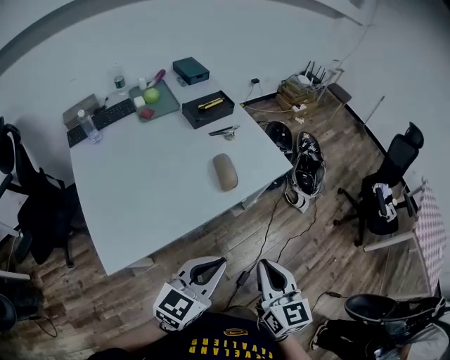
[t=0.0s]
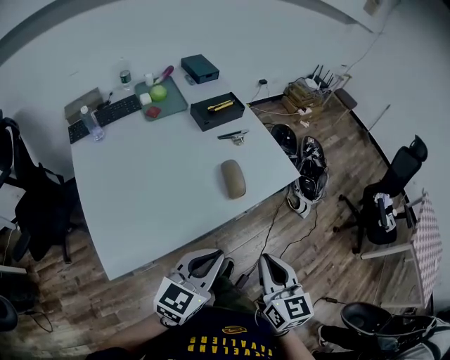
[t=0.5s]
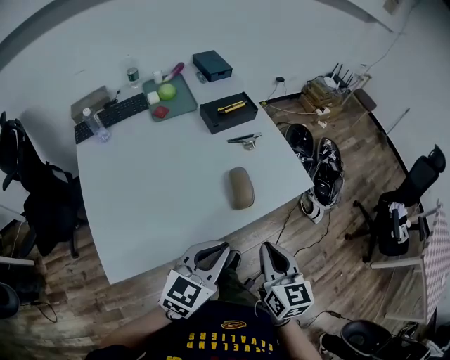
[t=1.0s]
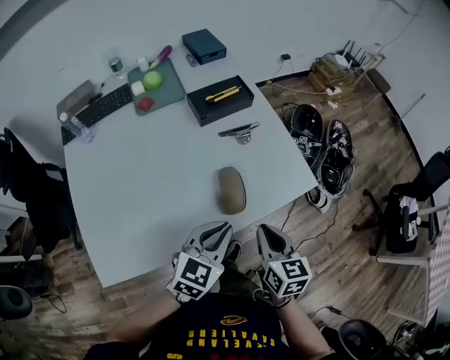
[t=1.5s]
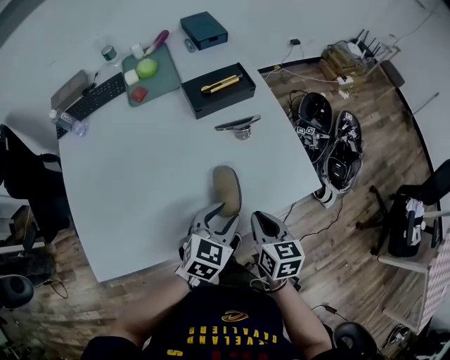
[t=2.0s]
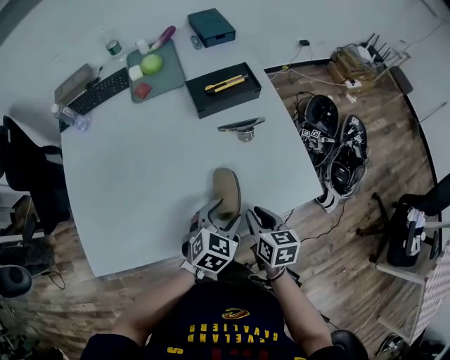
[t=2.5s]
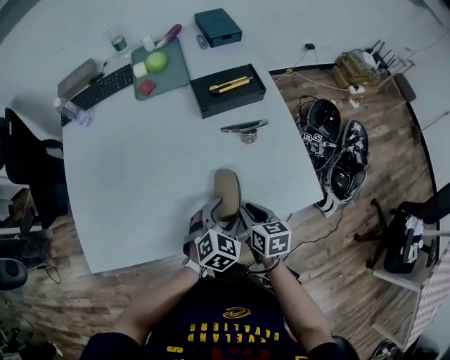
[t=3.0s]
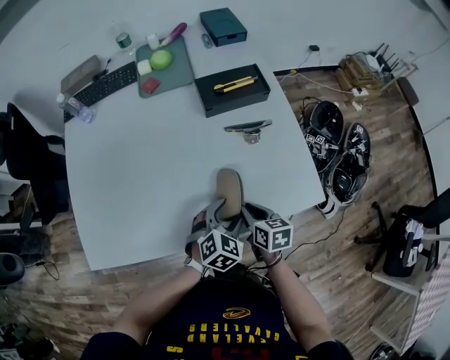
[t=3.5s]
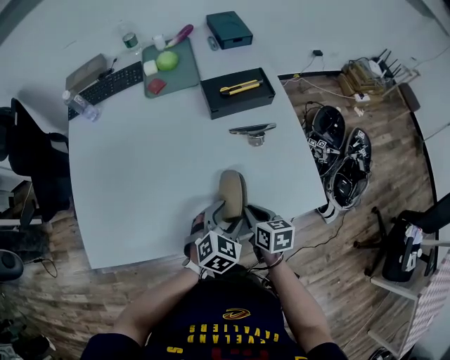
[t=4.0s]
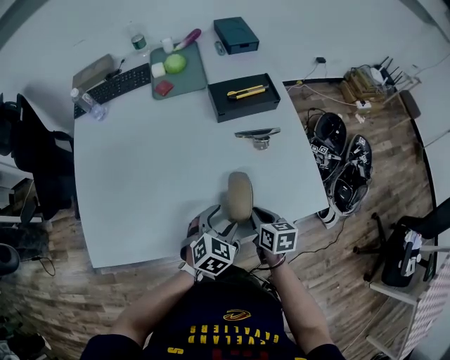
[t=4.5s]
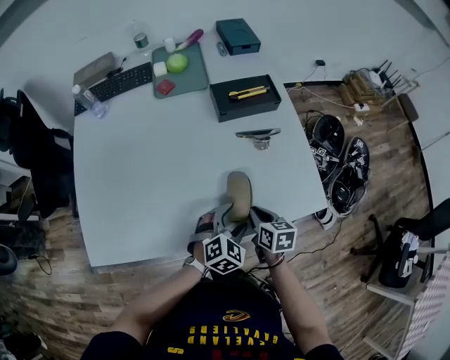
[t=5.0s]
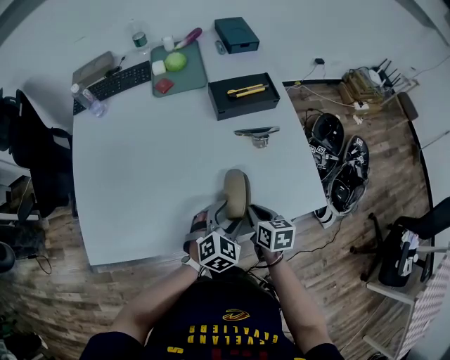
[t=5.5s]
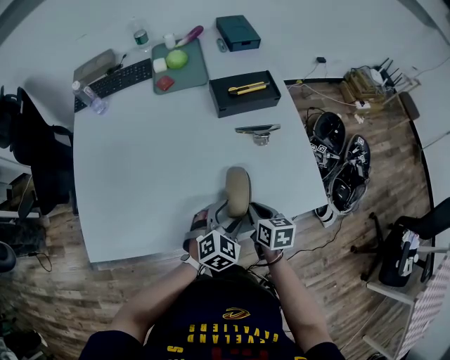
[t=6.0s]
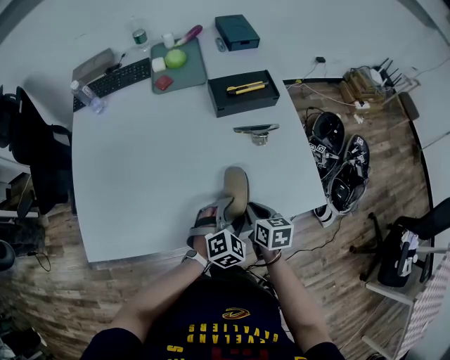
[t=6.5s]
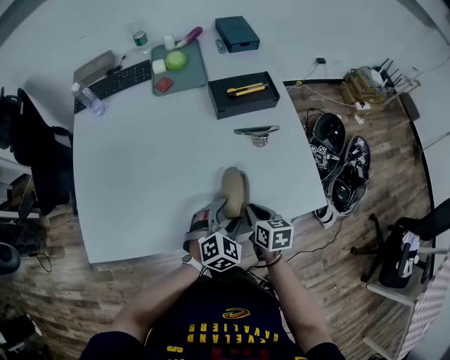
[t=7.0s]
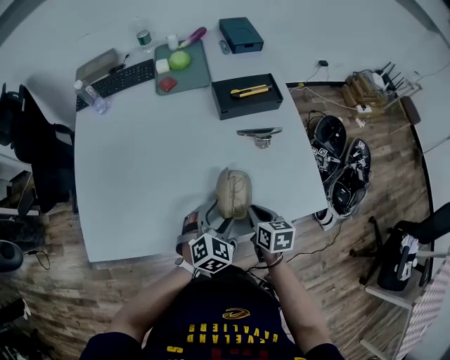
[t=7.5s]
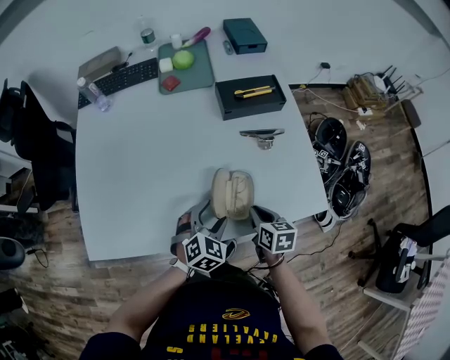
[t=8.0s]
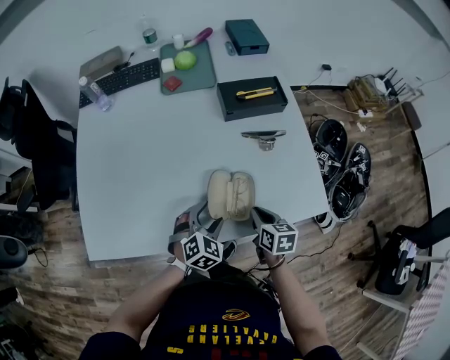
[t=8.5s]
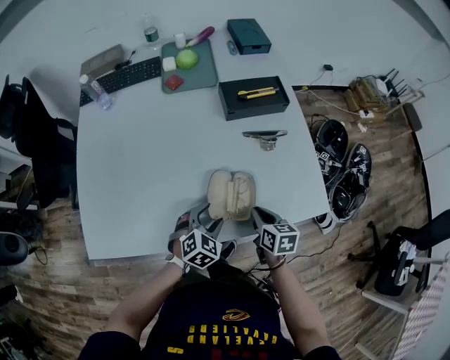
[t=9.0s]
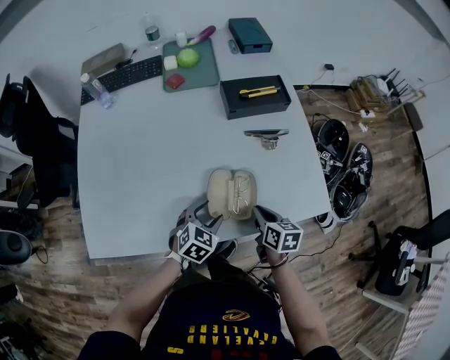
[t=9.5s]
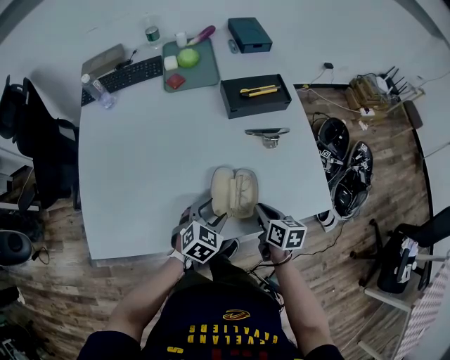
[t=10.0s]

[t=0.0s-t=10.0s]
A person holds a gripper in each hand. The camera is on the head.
t=0.0s to t=2.0s: The two grippers go some 35 cm forward and downward. The right gripper changes its angle by roughly 30 degrees. The left gripper changes its angle by approximately 30 degrees, and opens.
t=2.0s to t=4.0s: Both grippers travel together downward, some 10 cm. The left gripper opens its fingers.
t=4.0s to t=6.0s: There are only small adjustments of the grippers.
t=6.0s to t=8.0s: The left gripper shifts approximately 5 cm to the left.
t=8.0s to t=10.0s: The grippers stay close to where they were, moving slightly.

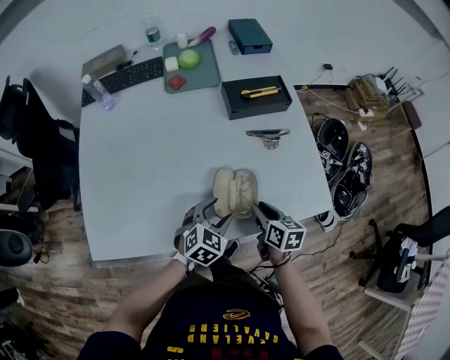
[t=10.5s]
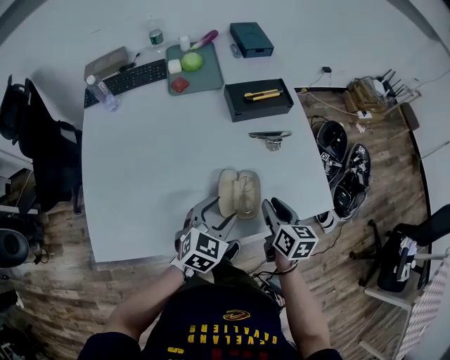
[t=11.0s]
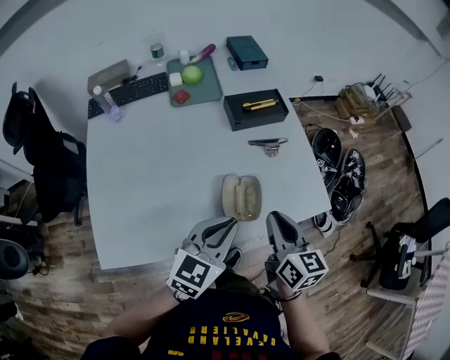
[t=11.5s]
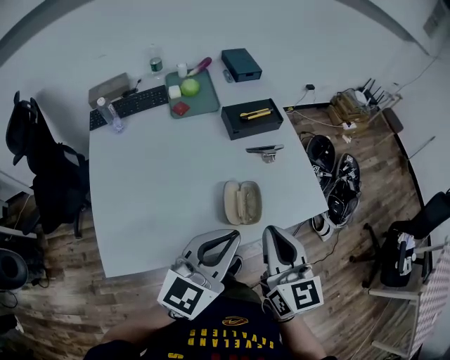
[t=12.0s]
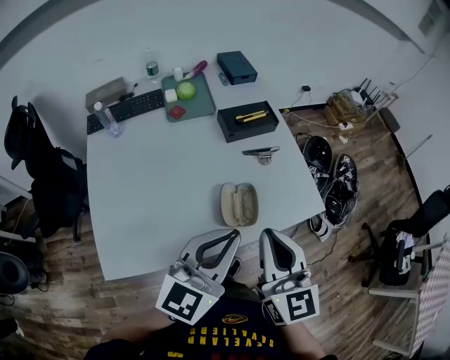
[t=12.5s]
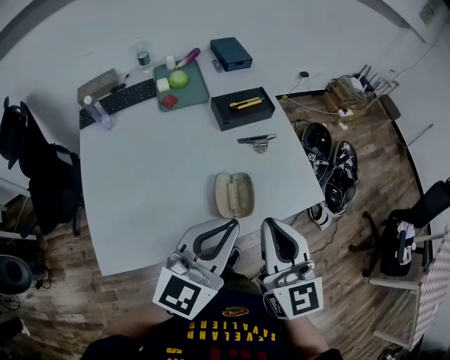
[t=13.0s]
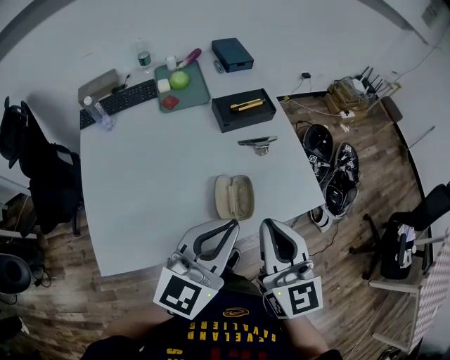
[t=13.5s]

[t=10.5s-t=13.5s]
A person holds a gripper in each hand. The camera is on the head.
t=10.5s to t=12.0s: Both grippers move upward, approximately 30 cm. The right gripper rotates roughly 40 degrees, and closes up. The left gripper angles its fingers upward, by approximately 40 degrees, and closes.
t=12.0s to t=13.5s: The grippers stay close to where they were, moving slightly.

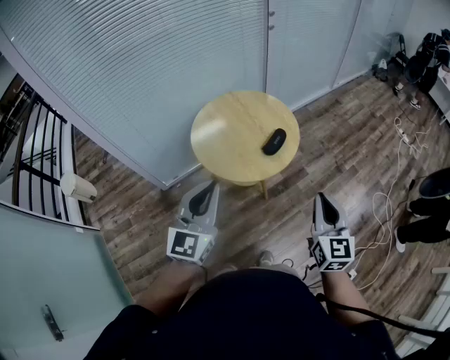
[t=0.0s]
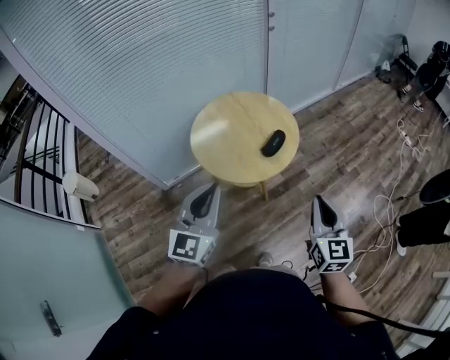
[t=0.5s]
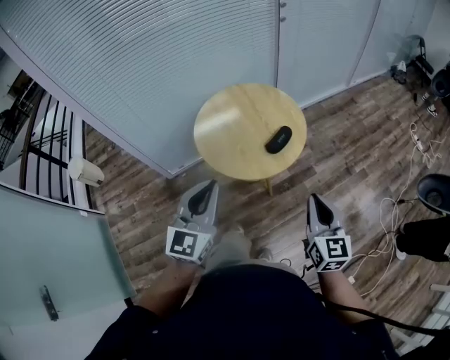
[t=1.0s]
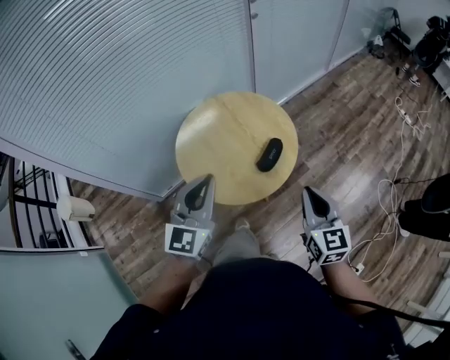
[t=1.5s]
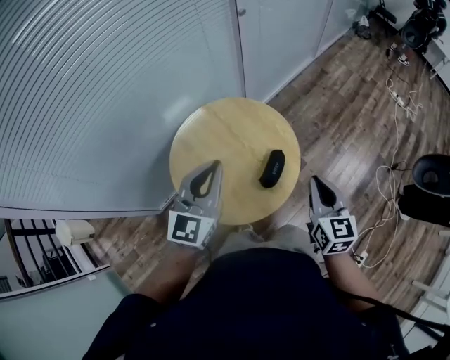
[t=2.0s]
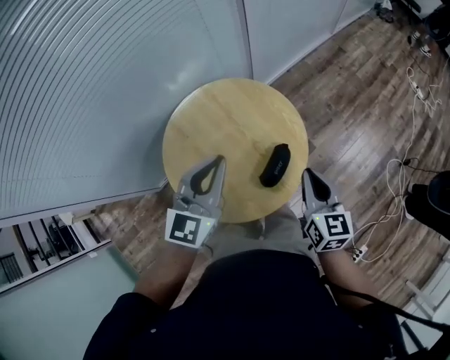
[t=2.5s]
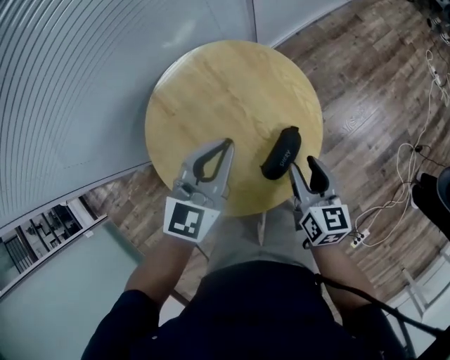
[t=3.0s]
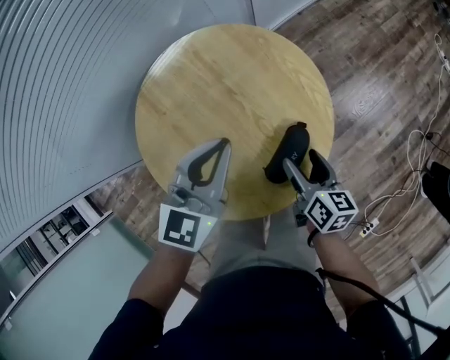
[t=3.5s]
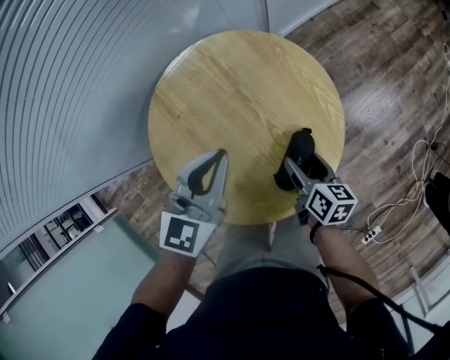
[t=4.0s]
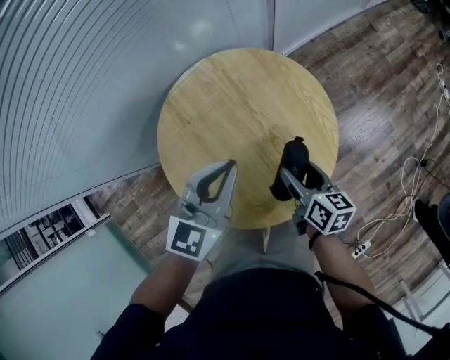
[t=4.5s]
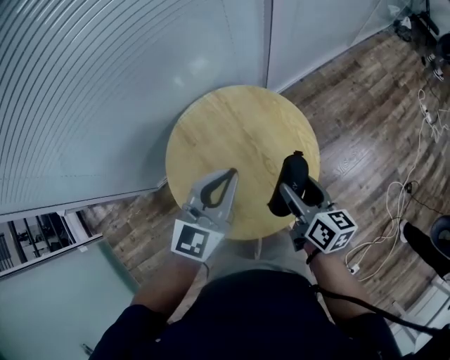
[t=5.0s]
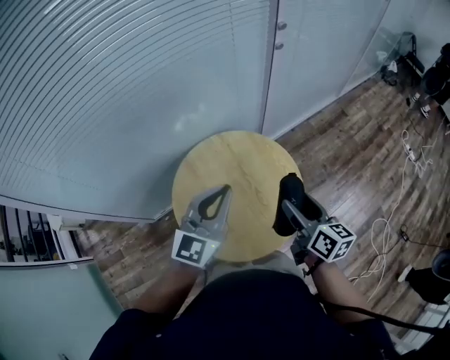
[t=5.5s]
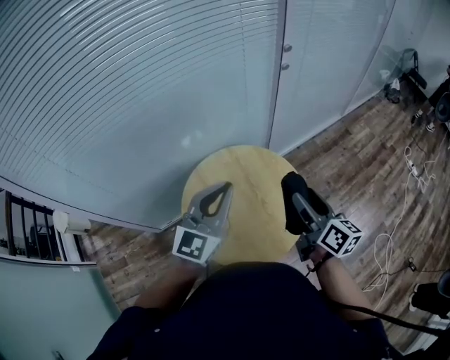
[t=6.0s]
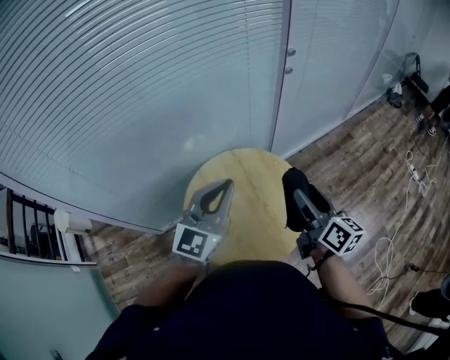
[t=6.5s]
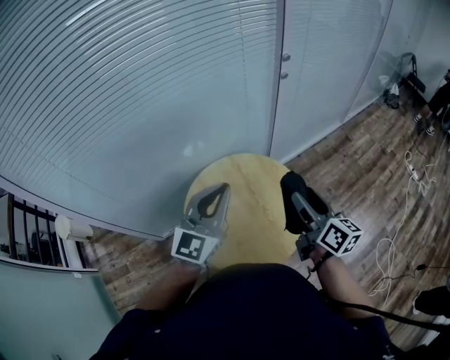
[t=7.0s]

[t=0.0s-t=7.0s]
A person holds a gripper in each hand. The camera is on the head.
t=0.0s to t=2.0s: The grippers both shift forward by some 35 cm.
t=2.0s to t=3.5s: The grippers both shift downward and forward by about 30 cm. The right gripper swivels roughly 40 degrees, and opens up.
t=3.5s to t=5.0s: The grippers both shift upward by some 15 cm.
t=5.0s to t=7.0s: Both grippers travel together upward, some 20 cm.

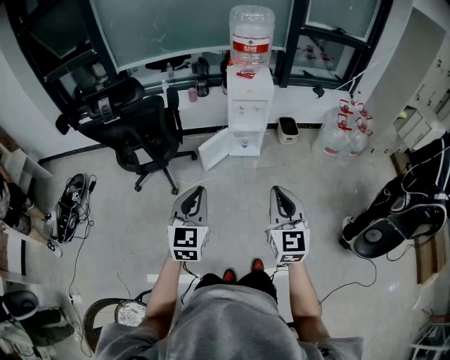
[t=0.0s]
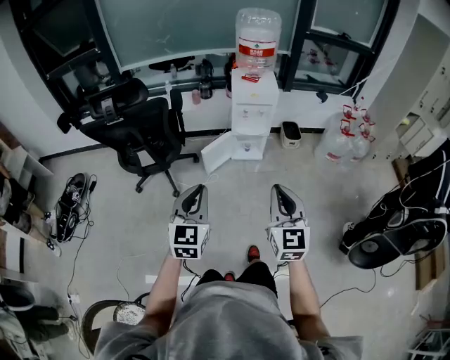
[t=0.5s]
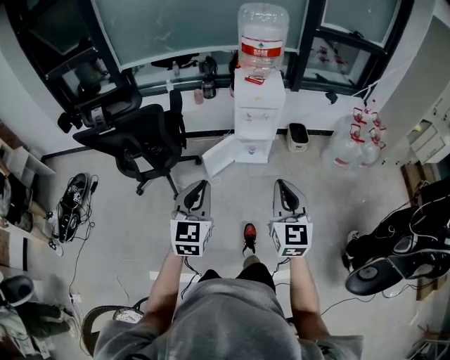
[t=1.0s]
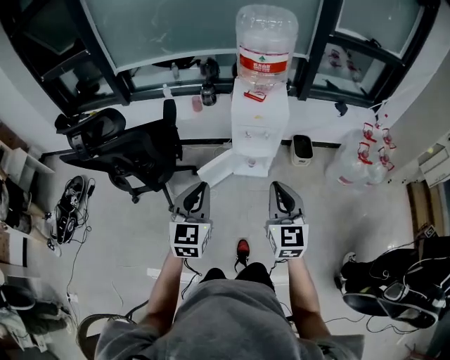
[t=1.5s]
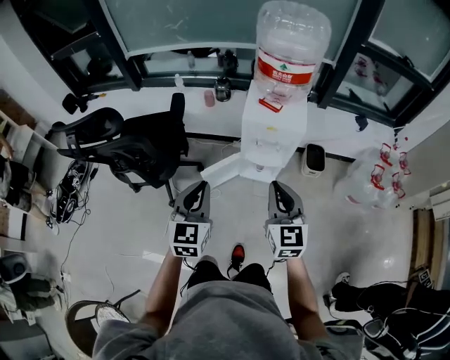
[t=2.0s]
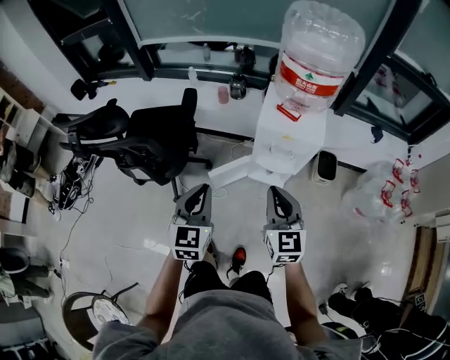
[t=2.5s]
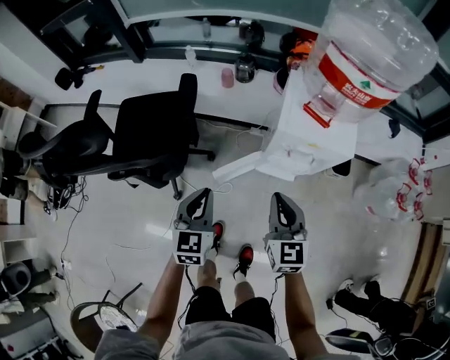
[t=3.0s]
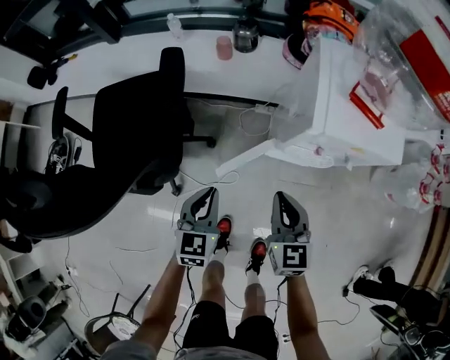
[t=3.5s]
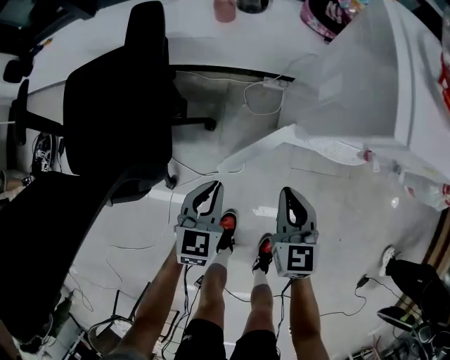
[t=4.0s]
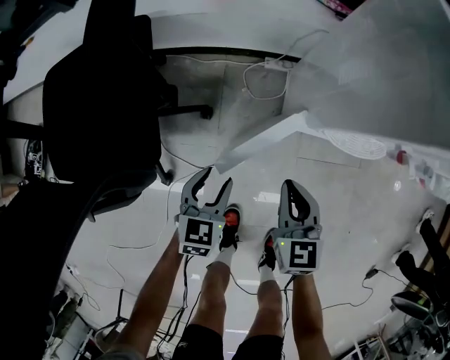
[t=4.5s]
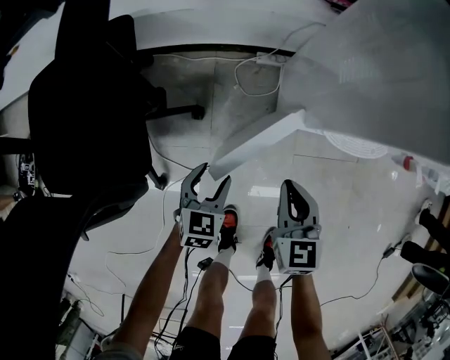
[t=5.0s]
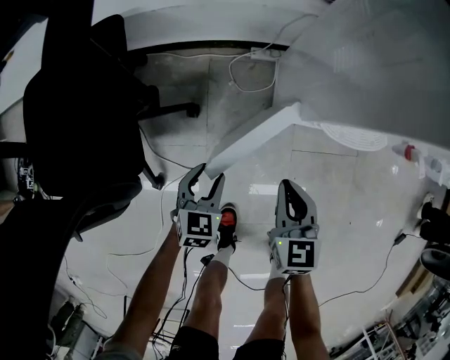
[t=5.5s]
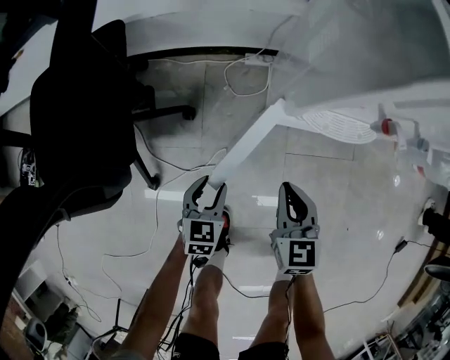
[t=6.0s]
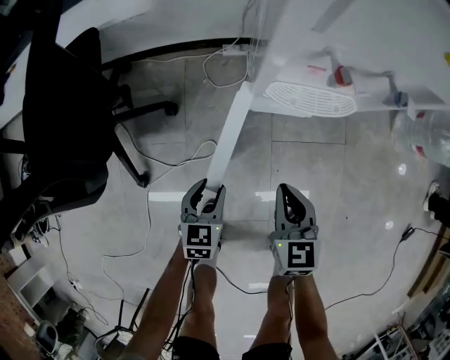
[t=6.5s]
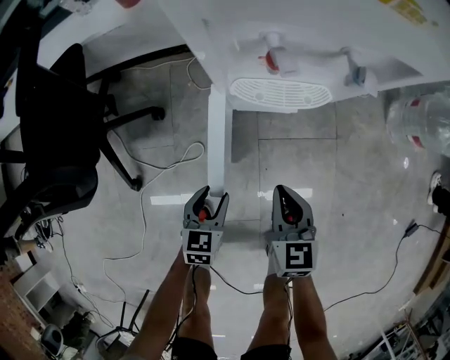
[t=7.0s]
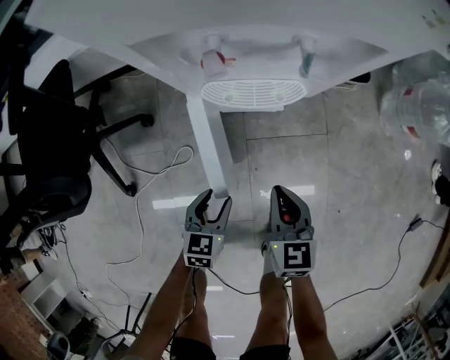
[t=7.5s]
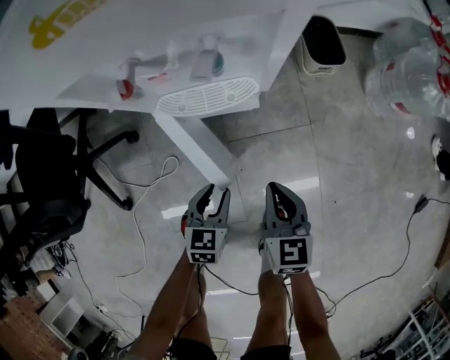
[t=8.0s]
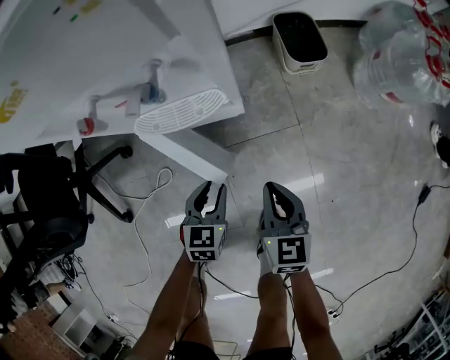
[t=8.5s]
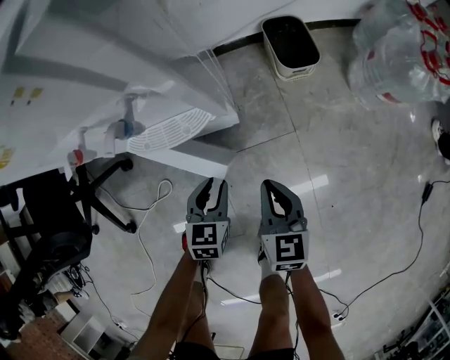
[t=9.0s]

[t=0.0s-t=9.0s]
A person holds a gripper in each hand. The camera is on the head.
t=0.0s to t=2.0s: The grippers both shift forward by roughly 40 cm.
t=2.0s to t=4.5s: The left gripper moves downward, about 60 cm, swivels roughly 30 degrees, and opens up. The right gripper heads downward and forward, covering roughly 60 cm, and changes its angle by roughly 30 degrees.
t=4.5s to t=7.0s: Both grippers move to the right and backward, about 20 cm.
t=7.0s to t=9.0s: The right gripper shifts some 20 cm to the right. The left gripper moves to the right and forward, some 25 cm.
